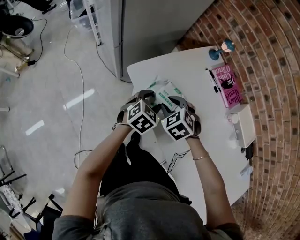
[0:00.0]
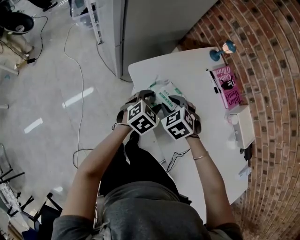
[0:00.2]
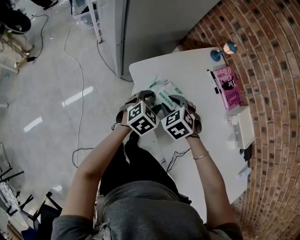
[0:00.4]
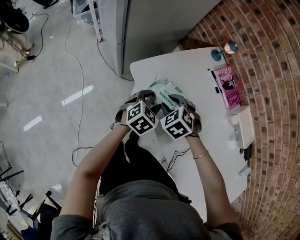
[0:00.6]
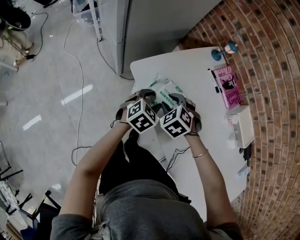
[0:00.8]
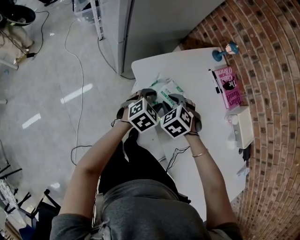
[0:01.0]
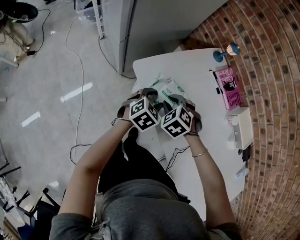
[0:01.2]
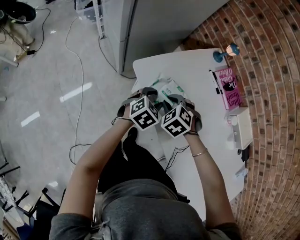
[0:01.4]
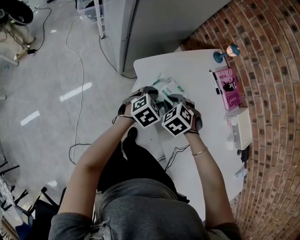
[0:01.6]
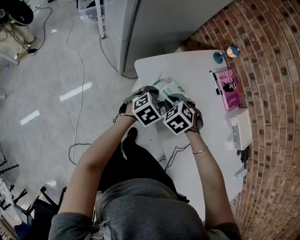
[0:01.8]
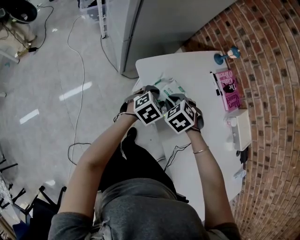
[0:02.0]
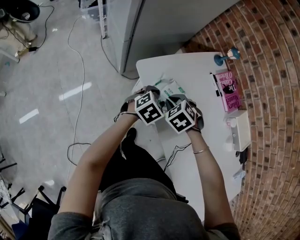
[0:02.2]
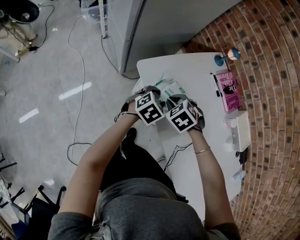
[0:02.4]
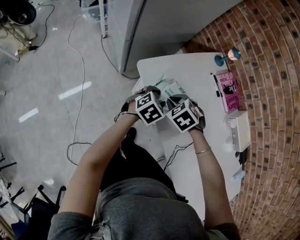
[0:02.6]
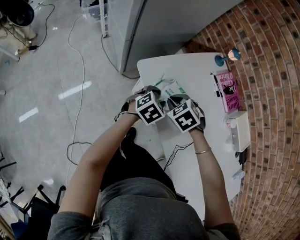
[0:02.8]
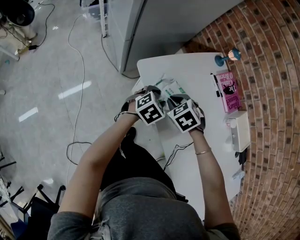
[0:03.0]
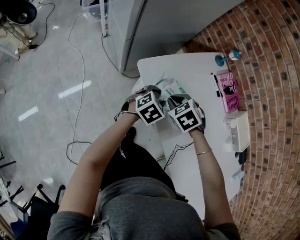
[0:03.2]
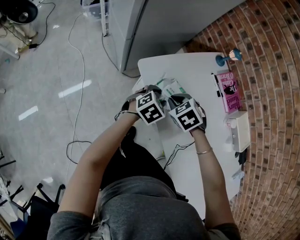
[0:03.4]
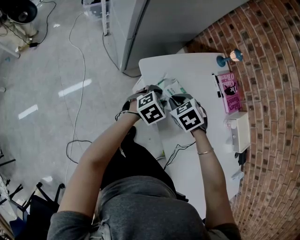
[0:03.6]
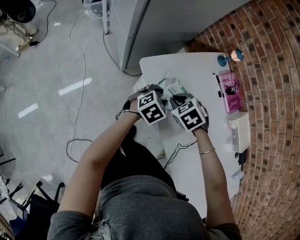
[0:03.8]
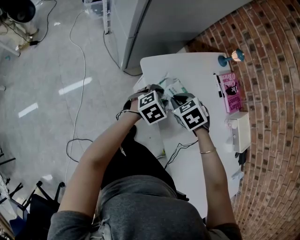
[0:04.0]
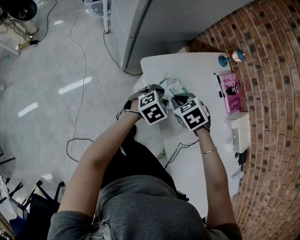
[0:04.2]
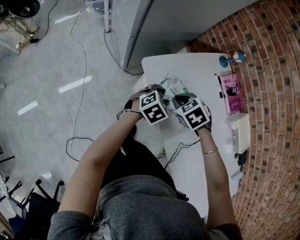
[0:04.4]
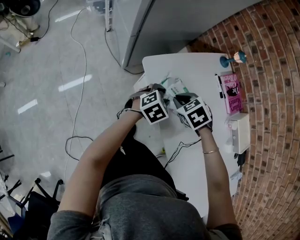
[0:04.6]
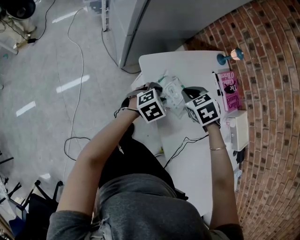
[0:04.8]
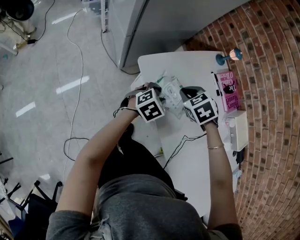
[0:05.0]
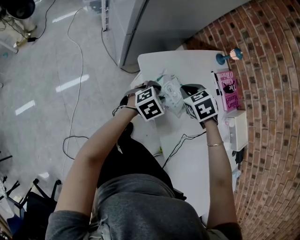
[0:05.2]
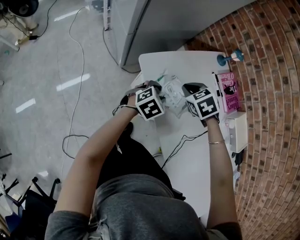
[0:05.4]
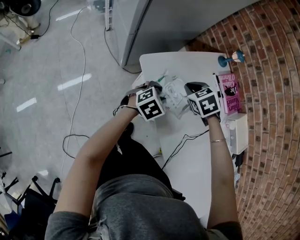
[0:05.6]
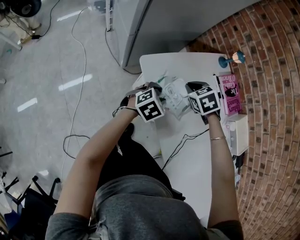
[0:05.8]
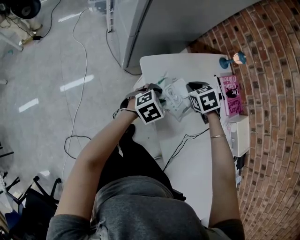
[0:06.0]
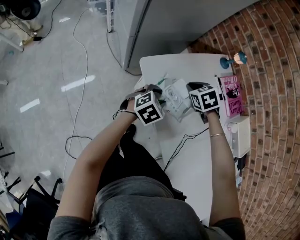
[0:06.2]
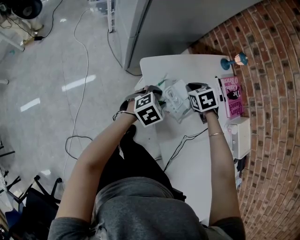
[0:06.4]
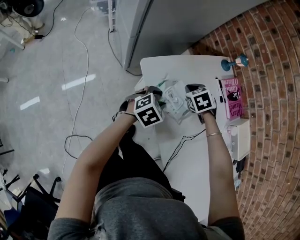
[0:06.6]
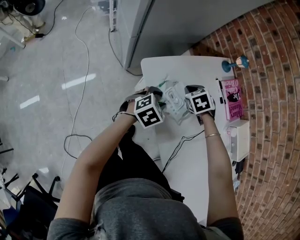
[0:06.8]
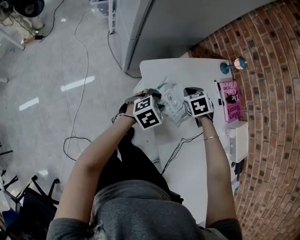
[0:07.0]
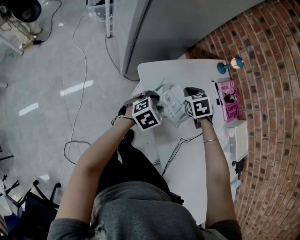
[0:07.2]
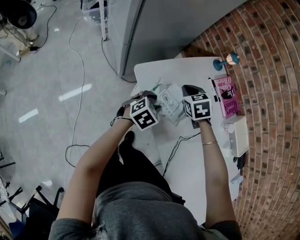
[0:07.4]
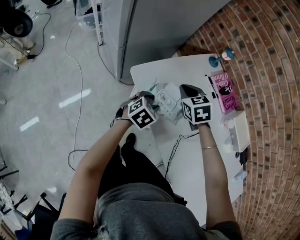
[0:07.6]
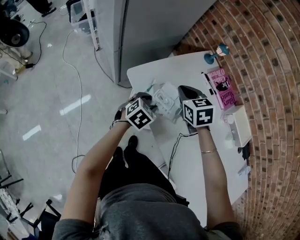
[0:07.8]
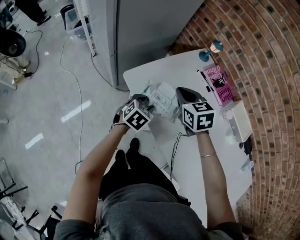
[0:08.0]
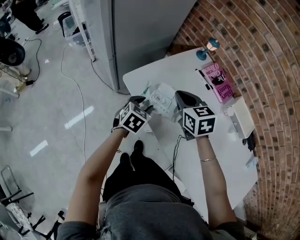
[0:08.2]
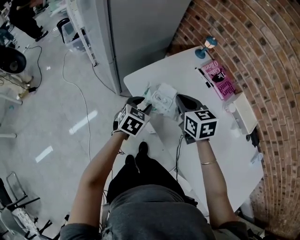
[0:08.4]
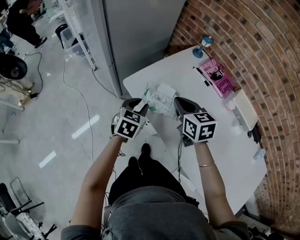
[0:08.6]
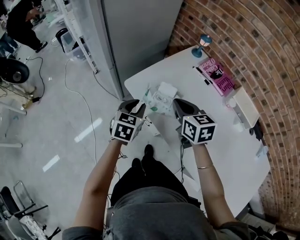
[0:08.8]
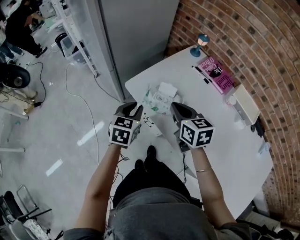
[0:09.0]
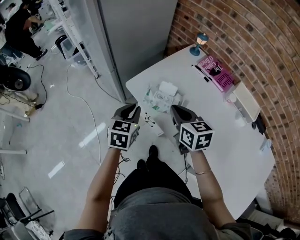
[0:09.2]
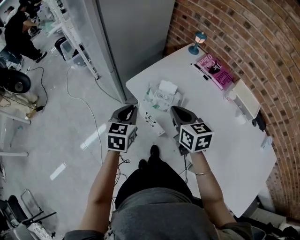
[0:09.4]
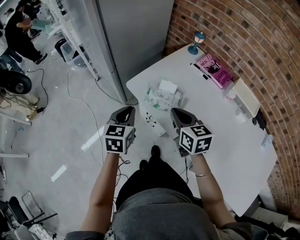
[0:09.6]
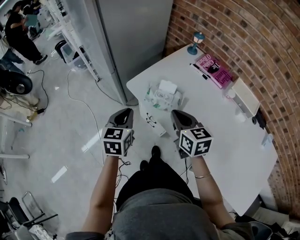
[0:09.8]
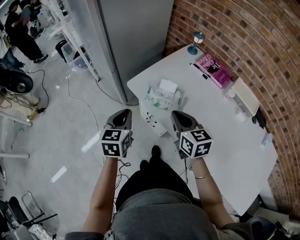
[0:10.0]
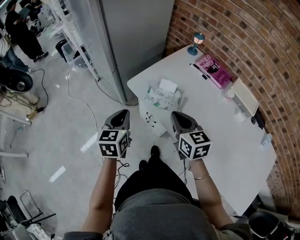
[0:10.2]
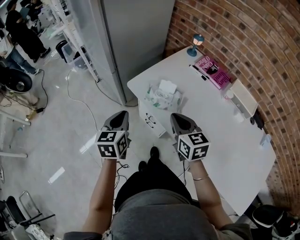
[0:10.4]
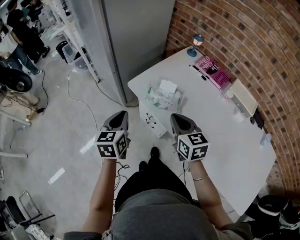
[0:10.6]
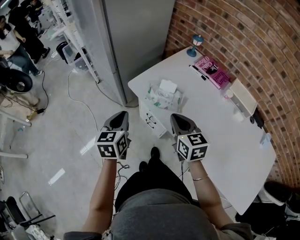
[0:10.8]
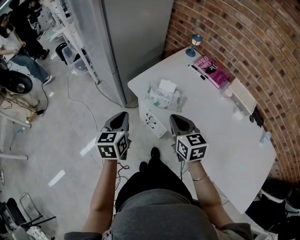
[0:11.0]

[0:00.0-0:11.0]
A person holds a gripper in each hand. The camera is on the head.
0:00.0 to 0:03.2: There are only small adjustments of the grippers.
0:03.2 to 0:04.8: The right gripper ends up some 5 cm from where it was.
0:04.8 to 0:06.2: The right gripper shifts roughly 5 cm forward.
0:06.2 to 0:07.8: The right gripper moves upward, roughly 10 cm, and changes its angle by some 30 degrees.
0:07.8 to 0:09.4: The left gripper is displaced upward, to the left and backward by approximately 15 cm, rotates about 30 degrees, and closes. The right gripper goes some 15 cm backward, and changes its angle by some 30 degrees.
0:09.4 to 0:11.0: Both grippers travel together backward, approximately 5 cm.

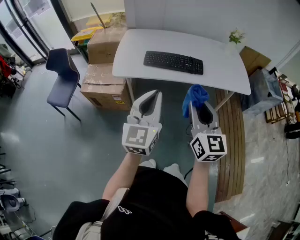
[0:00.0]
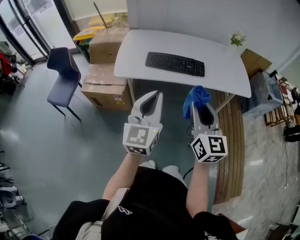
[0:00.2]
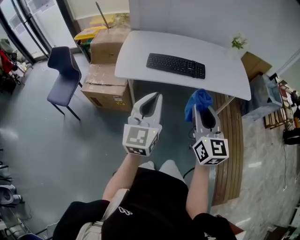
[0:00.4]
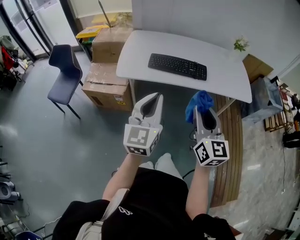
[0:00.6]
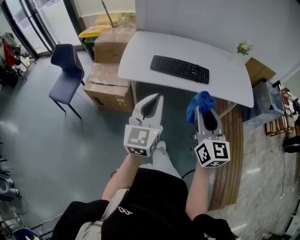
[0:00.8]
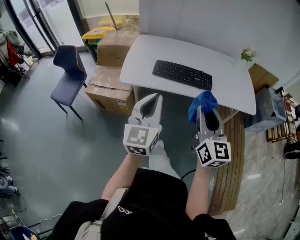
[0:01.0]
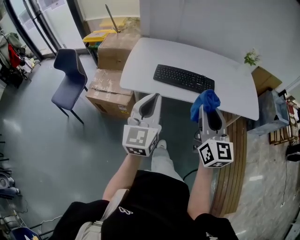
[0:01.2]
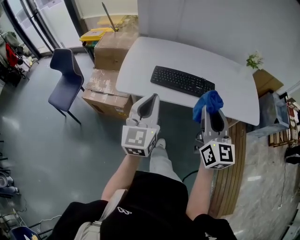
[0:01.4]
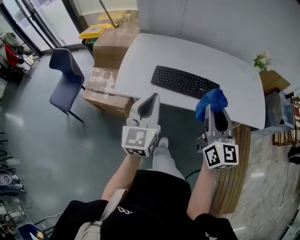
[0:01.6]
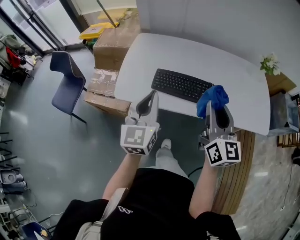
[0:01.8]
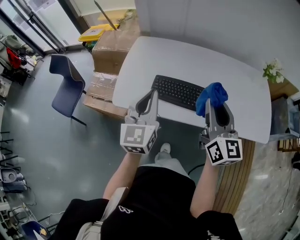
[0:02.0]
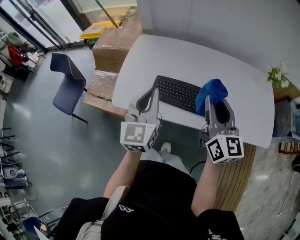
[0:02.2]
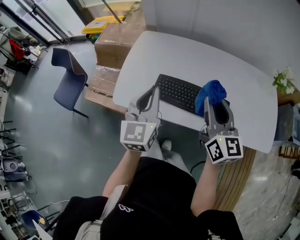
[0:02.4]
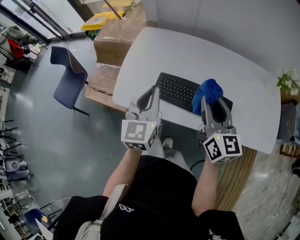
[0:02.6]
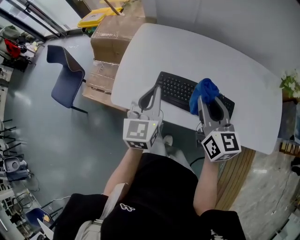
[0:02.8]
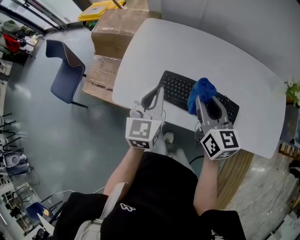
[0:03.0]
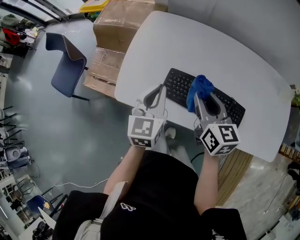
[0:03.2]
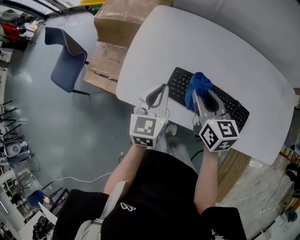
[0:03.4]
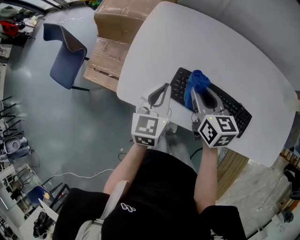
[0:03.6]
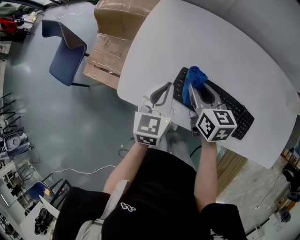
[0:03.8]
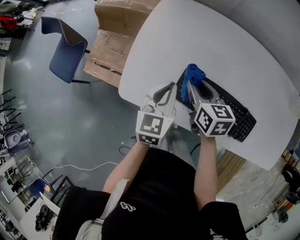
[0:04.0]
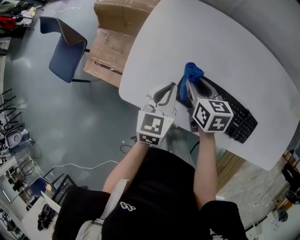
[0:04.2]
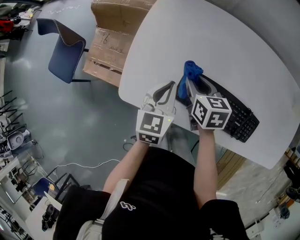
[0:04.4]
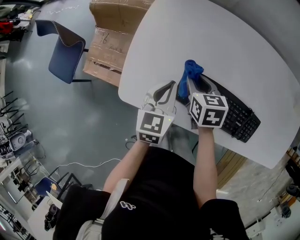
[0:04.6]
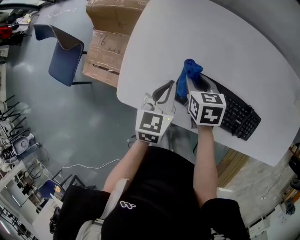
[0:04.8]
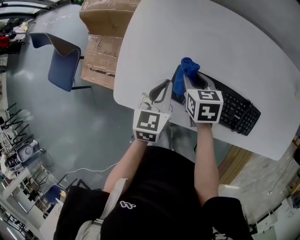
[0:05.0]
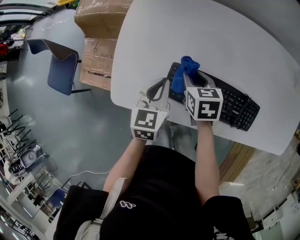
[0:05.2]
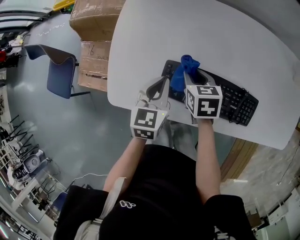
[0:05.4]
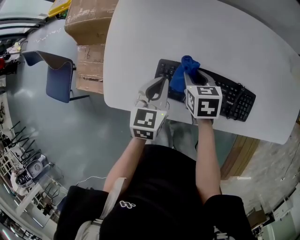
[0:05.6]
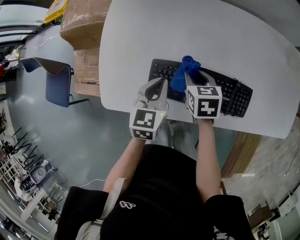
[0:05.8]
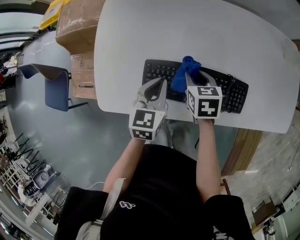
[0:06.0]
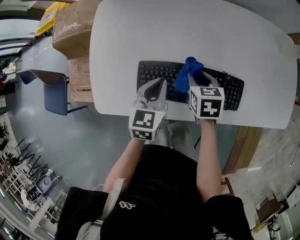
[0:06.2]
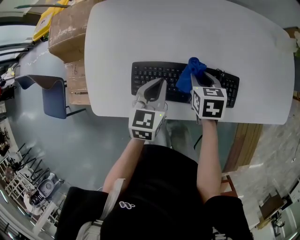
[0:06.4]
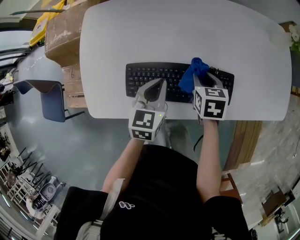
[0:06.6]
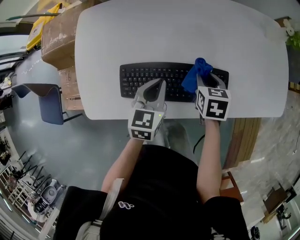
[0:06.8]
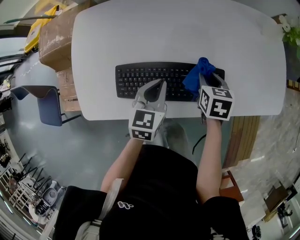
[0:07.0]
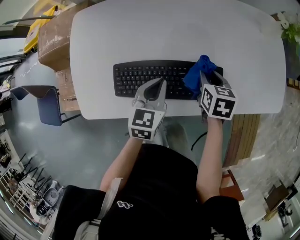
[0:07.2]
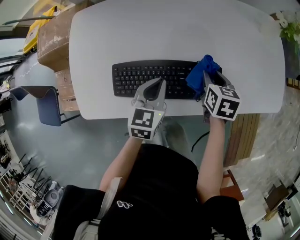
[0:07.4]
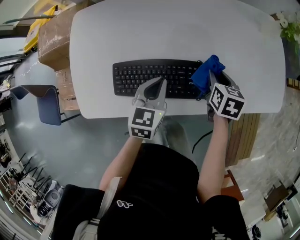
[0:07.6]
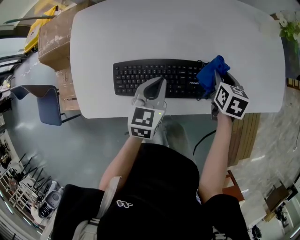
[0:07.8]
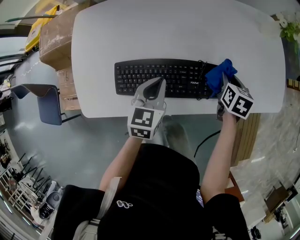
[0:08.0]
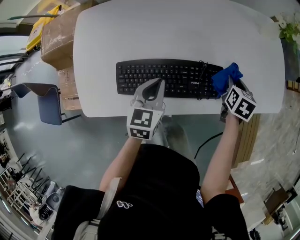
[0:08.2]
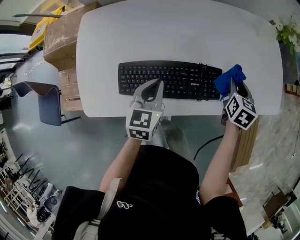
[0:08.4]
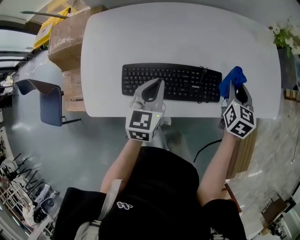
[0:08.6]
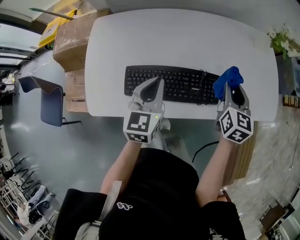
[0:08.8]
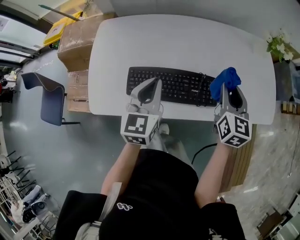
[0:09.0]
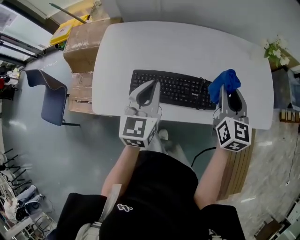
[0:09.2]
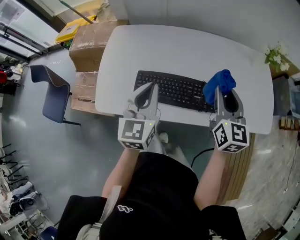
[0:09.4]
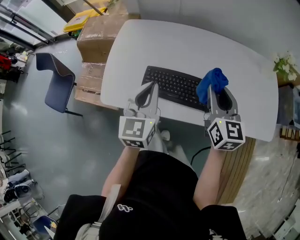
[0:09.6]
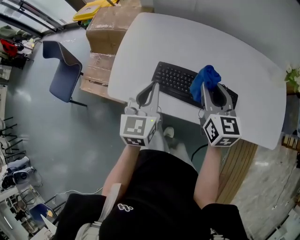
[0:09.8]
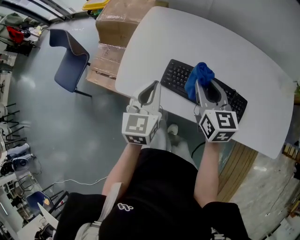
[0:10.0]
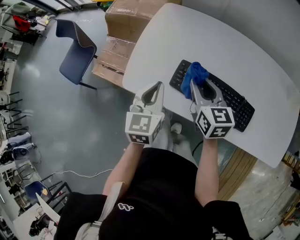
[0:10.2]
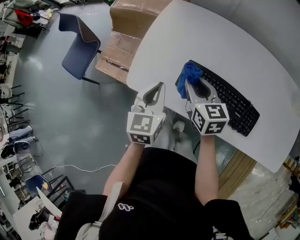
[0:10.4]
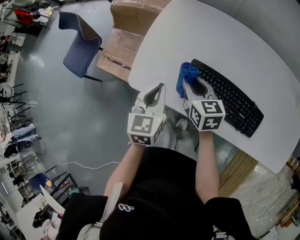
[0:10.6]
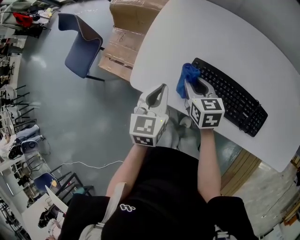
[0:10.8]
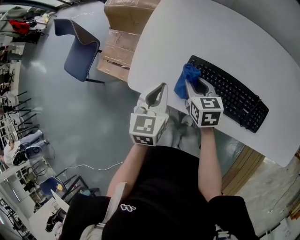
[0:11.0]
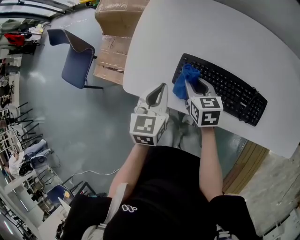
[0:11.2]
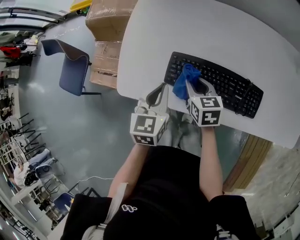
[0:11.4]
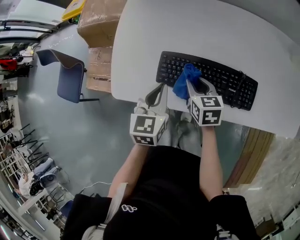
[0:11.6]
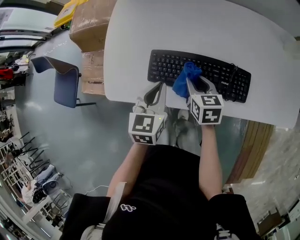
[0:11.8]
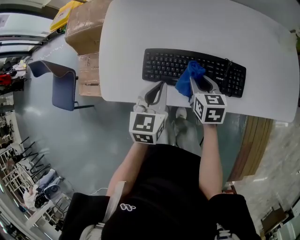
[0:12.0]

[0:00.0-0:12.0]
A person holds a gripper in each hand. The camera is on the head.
0:00.0 to 0:01.6: Both grippers move forward, about 20 cm.
0:01.6 to 0:03.0: The grippers both shift forward and downward by some 25 cm. The right gripper changes its angle by about 30 degrees.
0:03.0 to 0:04.4: The right gripper moves downward, forward and to the left, roughly 25 cm, and changes its angle by roughly 30 degrees, while the left gripper goes roughly 15 cm downward and forward.
0:04.4 to 0:06.0: The grippers both shift to the right by roughly 15 cm.
0:06.0 to 0:07.6: The left gripper shifts approximately 10 cm to the right. The right gripper shifts about 20 cm to the right, and turns by roughly 20 degrees.
0:07.6 to 0:09.0: The two grippers go some 15 cm upward. The right gripper tips its fingers upward by some 30 degrees; the left gripper swivels some 20 degrees.
0:09.0 to 0:10.4: The left gripper changes place by about 20 cm, and changes its angle by about 30 degrees. The right gripper ends up some 35 cm from where it was, and rotates about 50 degrees.
0:10.4 to 0:12.0: The right gripper moves to the right, downward and backward, roughly 20 cm, and changes its angle by approximately 30 degrees. Meanwhile the left gripper shifts some 15 cm to the right, and swivels approximately 20 degrees.

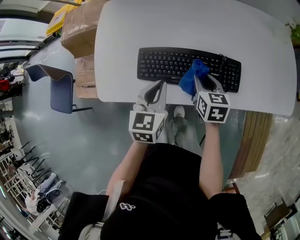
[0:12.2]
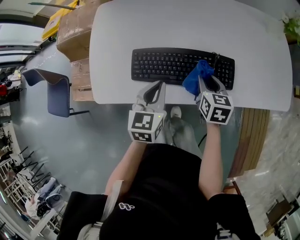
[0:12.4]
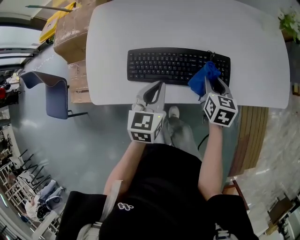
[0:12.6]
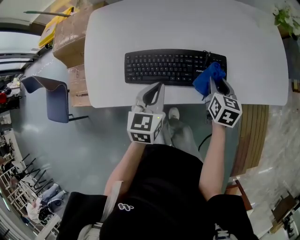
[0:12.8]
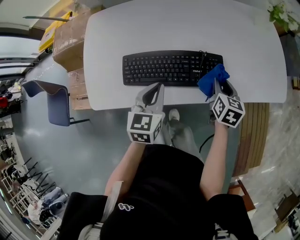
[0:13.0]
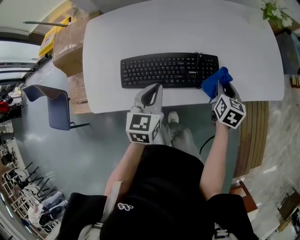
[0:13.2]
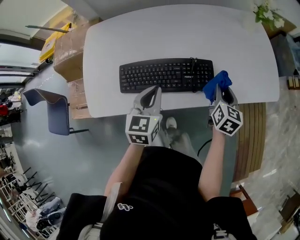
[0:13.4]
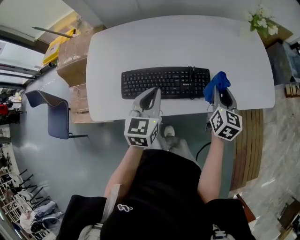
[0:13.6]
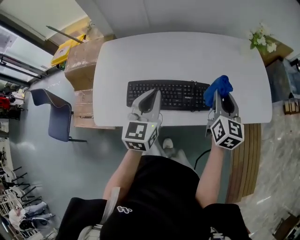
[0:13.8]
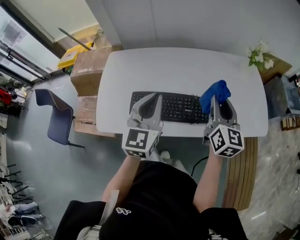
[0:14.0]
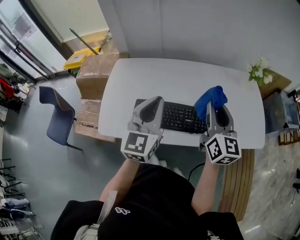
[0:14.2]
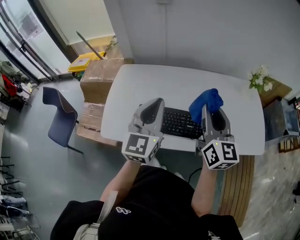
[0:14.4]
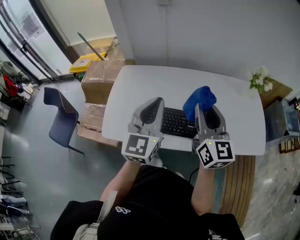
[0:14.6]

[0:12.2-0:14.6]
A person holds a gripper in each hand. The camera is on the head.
0:12.2 to 0:13.4: The right gripper shifts approximately 20 cm to the right, and changes its angle by about 30 degrees. Meanwhile the left gripper travels to the right by about 10 cm.
0:13.4 to 0:14.6: The left gripper shifts about 25 cm upward, and changes its angle by approximately 30 degrees. Meanwhile the right gripper moves upward and to the left, about 30 cm, and angles its fingers upward, by approximately 40 degrees.
